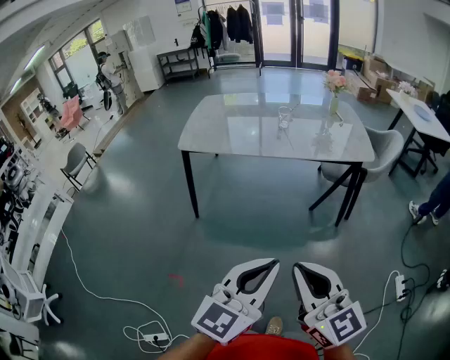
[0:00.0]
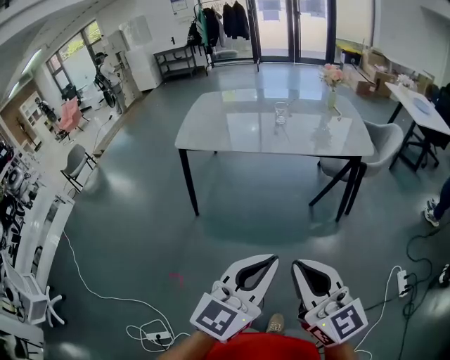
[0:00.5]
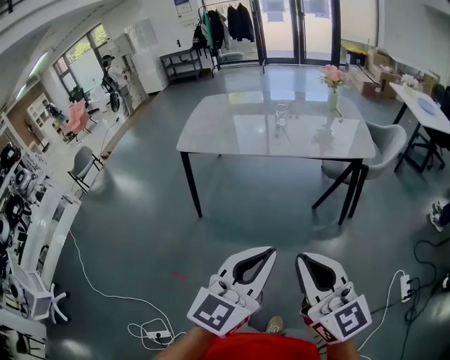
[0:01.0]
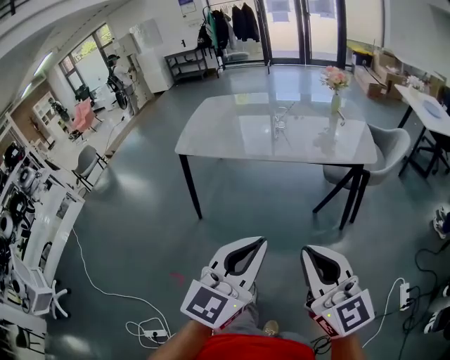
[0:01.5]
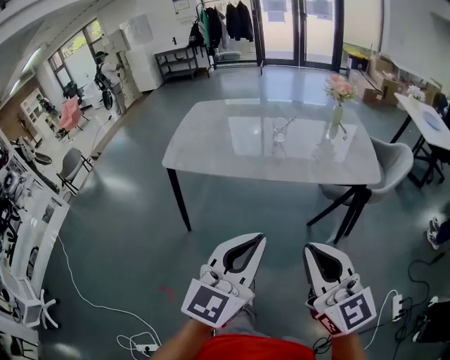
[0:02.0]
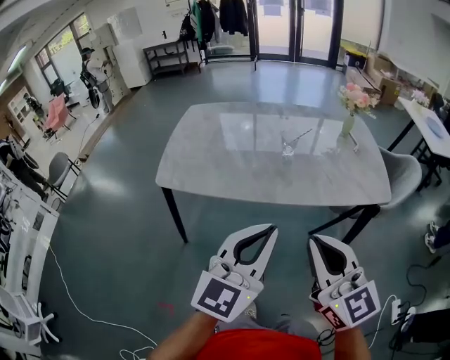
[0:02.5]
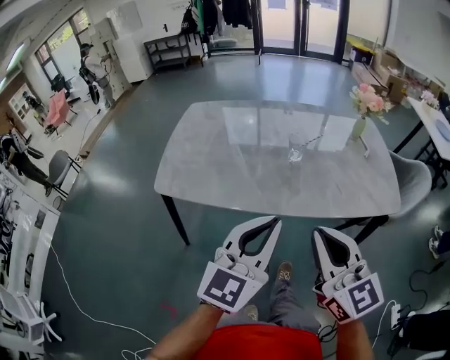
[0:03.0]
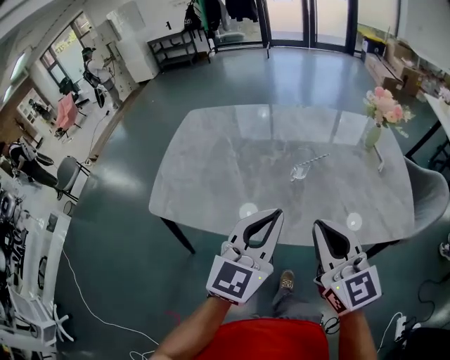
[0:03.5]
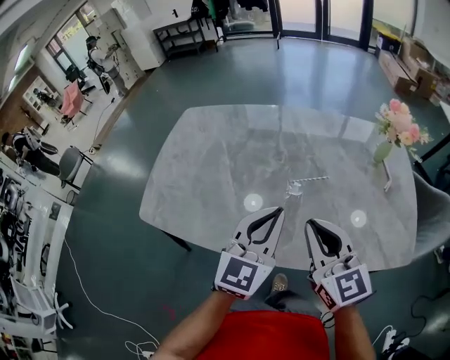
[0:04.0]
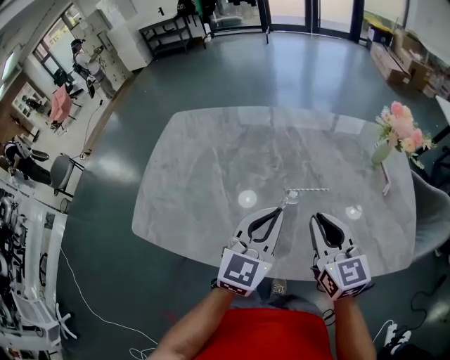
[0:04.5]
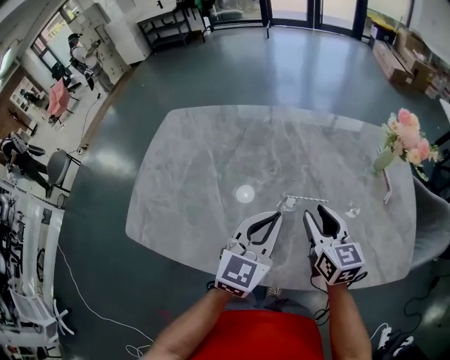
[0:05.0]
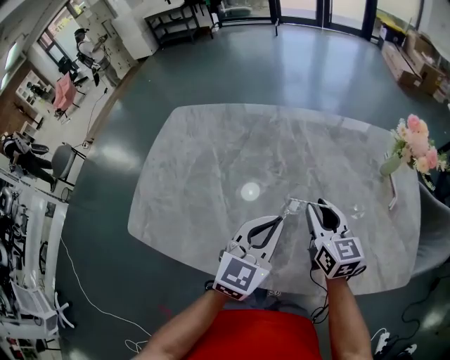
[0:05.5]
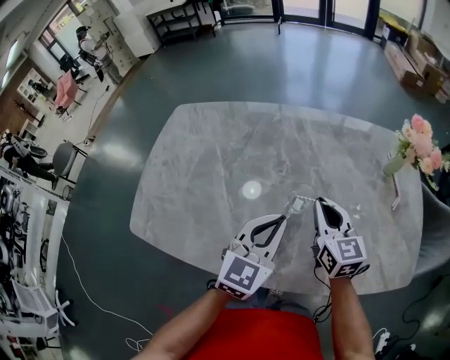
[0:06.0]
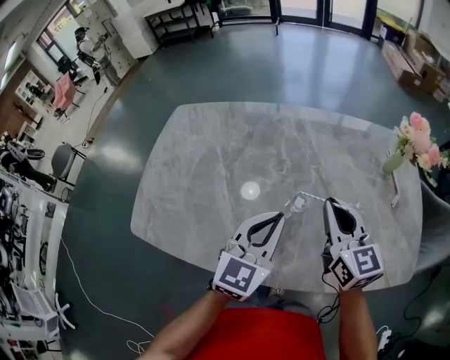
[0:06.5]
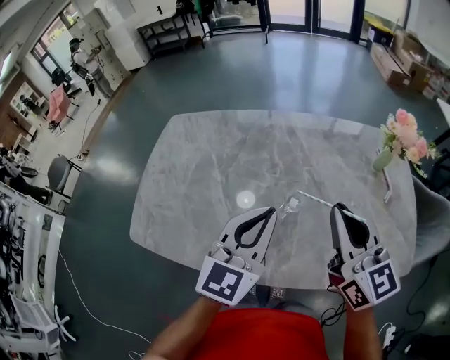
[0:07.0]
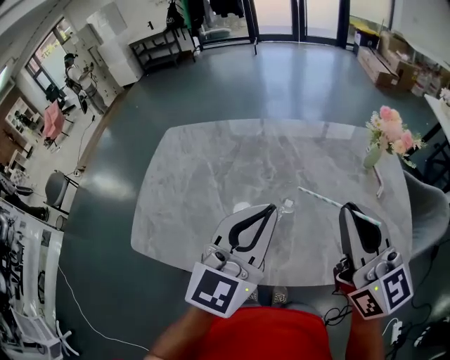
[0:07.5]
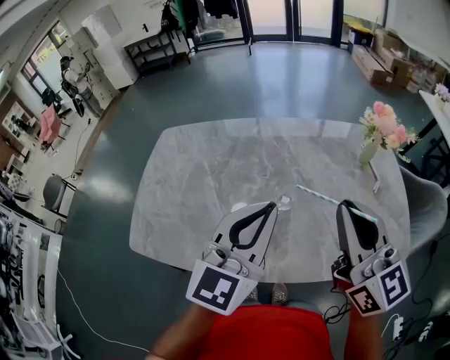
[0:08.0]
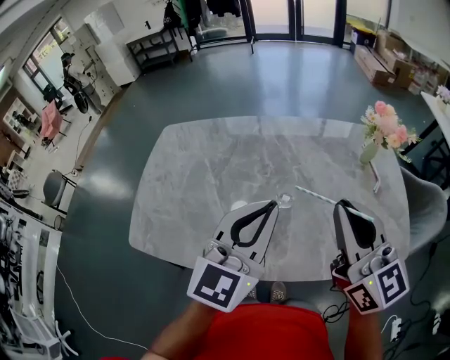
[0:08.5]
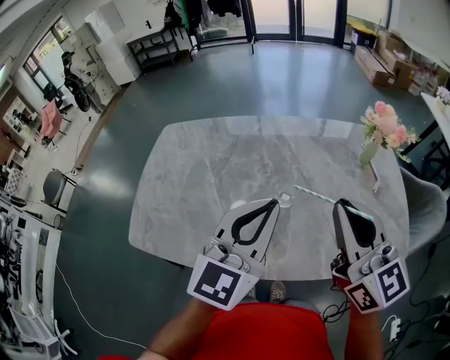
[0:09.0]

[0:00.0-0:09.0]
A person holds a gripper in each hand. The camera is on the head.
0:00.0 to 0:02.0: The two grippers go some 20 cm forward.
0:02.0 to 0:04.5: Both grippers are carried forward, roughly 60 cm.
0:04.5 to 0:07.0: The left gripper heads upward, covering some 5 cm. The right gripper moves upward, approximately 10 cm, and opens and closes again.
0:07.0 to 0:09.0: The left gripper moves upward, approximately 5 cm. Meanwhile the right gripper heads upward and backward, covering roughly 10 cm.

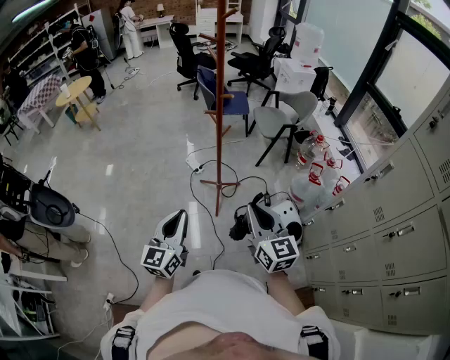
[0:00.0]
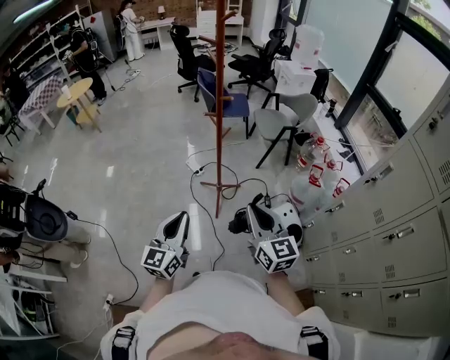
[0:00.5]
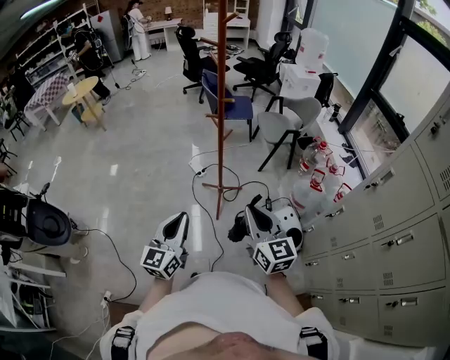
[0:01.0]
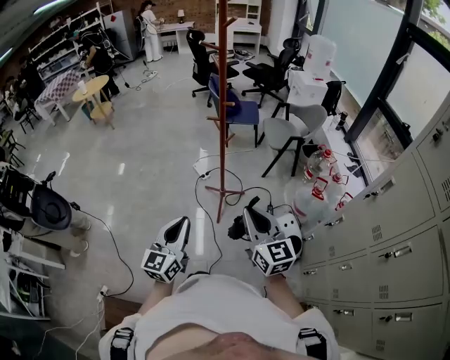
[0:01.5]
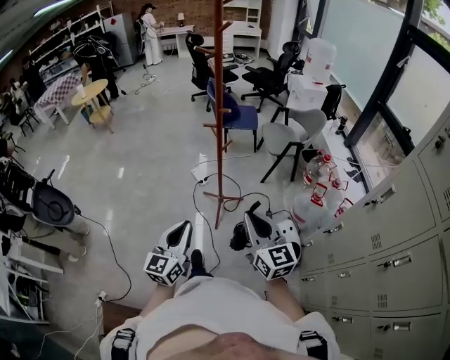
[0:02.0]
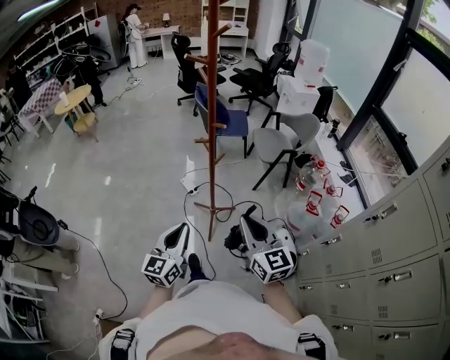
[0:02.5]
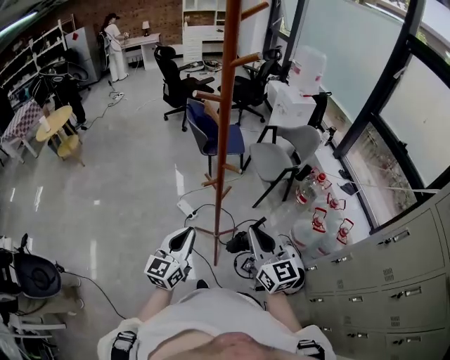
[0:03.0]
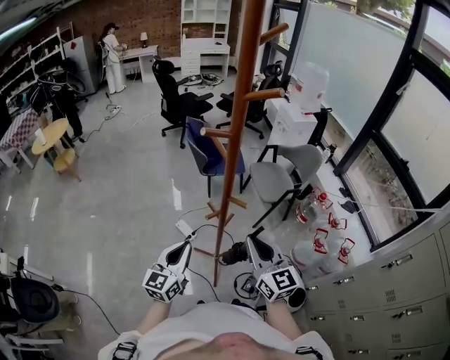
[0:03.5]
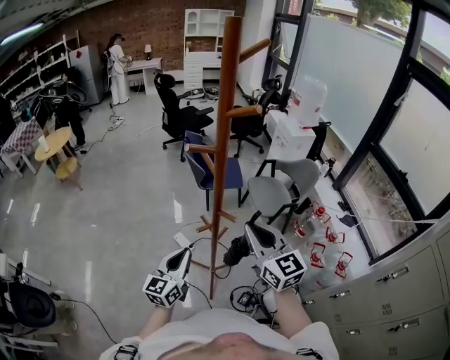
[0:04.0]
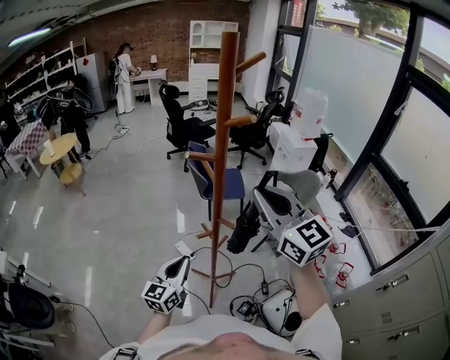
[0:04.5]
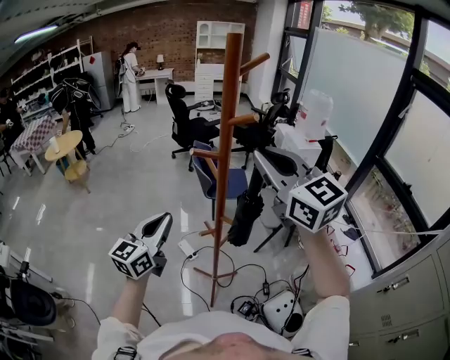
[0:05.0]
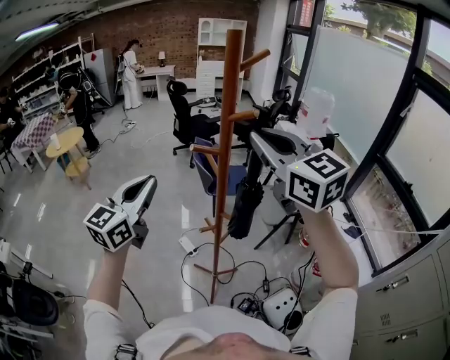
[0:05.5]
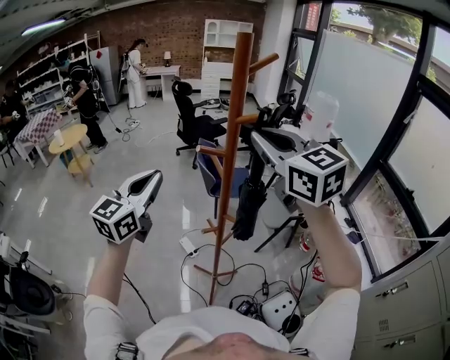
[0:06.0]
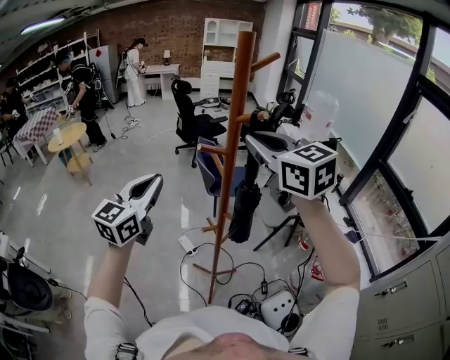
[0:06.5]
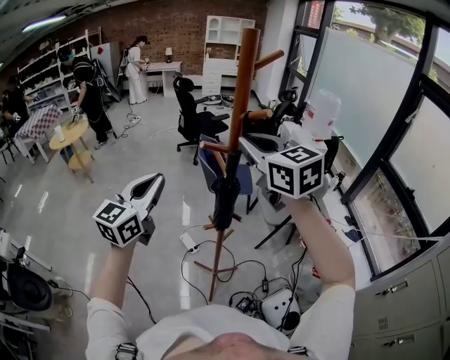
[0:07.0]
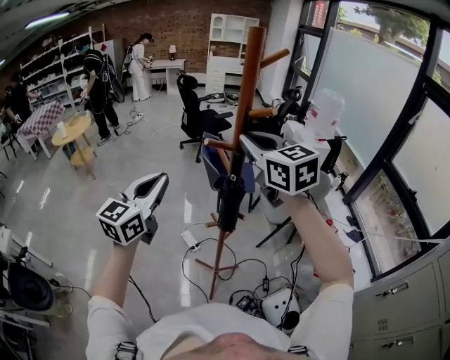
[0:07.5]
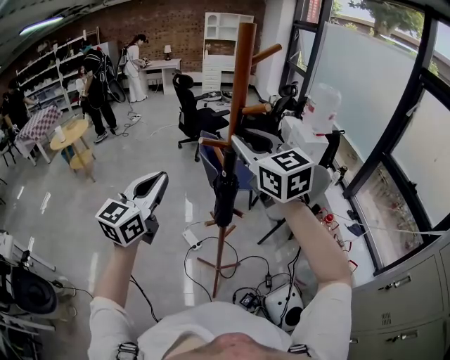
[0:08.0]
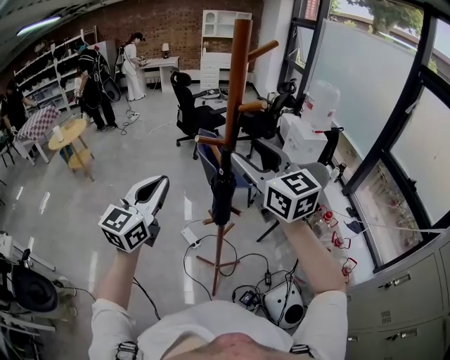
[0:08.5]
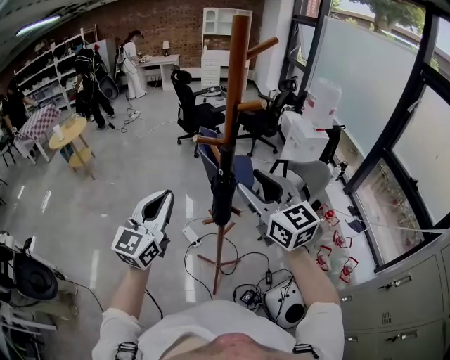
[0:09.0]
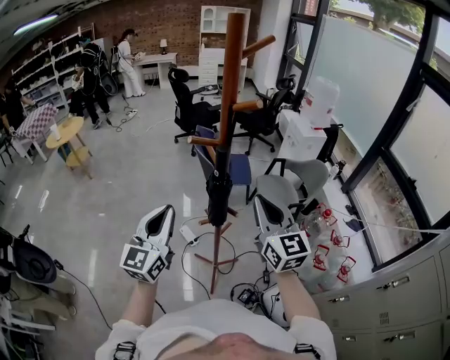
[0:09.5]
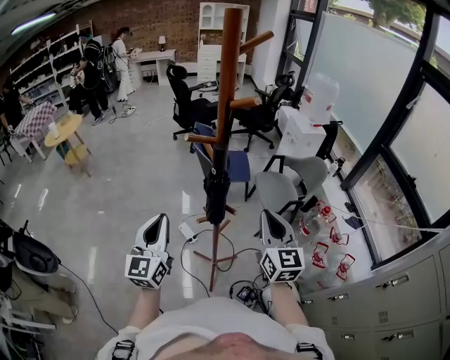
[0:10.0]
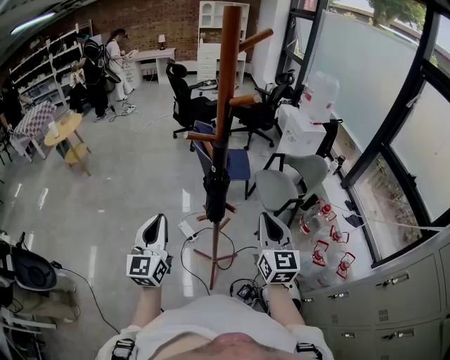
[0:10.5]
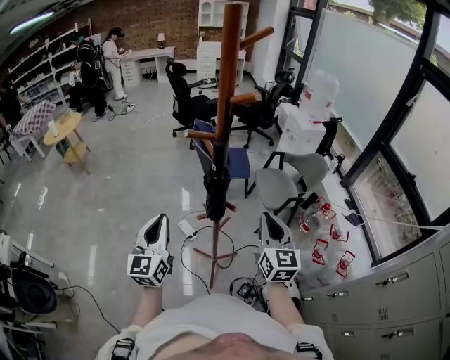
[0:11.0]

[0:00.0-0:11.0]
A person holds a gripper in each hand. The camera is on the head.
0:00.0 to 0:02.0: The grippers both shift to the right by approximately 5 cm.
0:02.0 to 0:03.5: The two grippers go some 35 cm forward.
0:03.5 to 0:05.5: The grippers both shift upward by some 30 cm. The right gripper turns by about 20 degrees.
0:05.5 to 0:07.5: The right gripper travels forward and downward by approximately 10 cm.
0:07.5 to 0:09.0: The left gripper ends up about 5 cm from where it was; the right gripper is displaced downward and backward by about 10 cm, and opens its fingers.
0:09.0 to 0:11.0: The left gripper heads downward, covering some 10 cm; the right gripper is displaced downward and to the right by about 15 cm, turns by roughly 30 degrees, and closes.

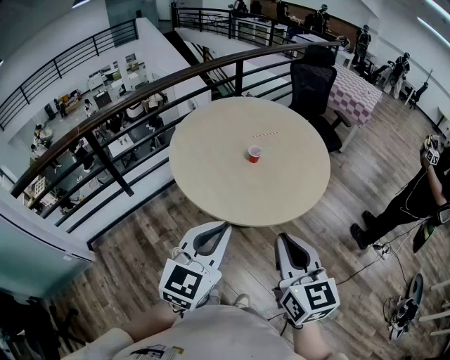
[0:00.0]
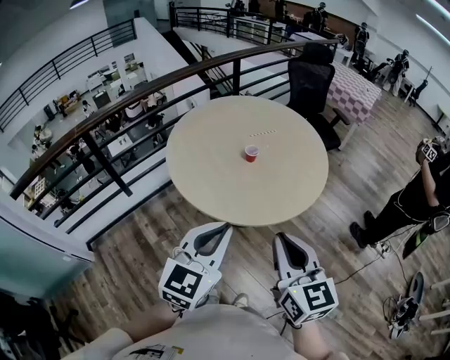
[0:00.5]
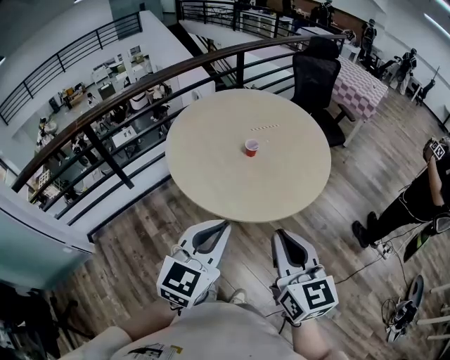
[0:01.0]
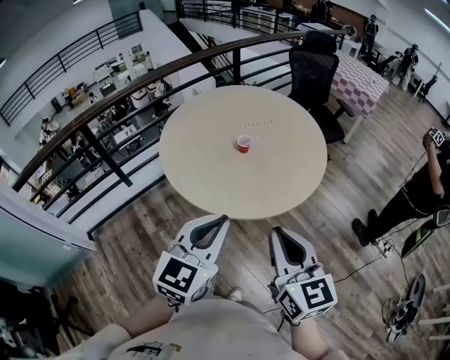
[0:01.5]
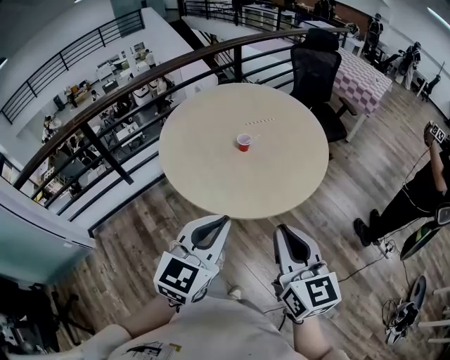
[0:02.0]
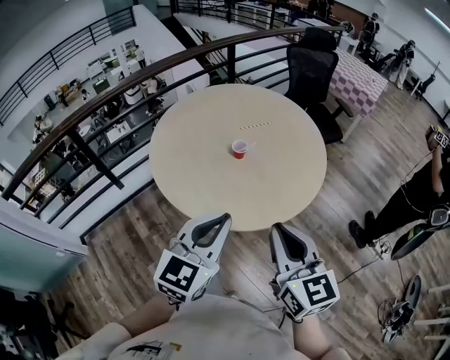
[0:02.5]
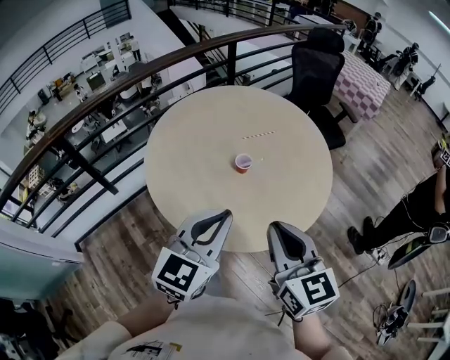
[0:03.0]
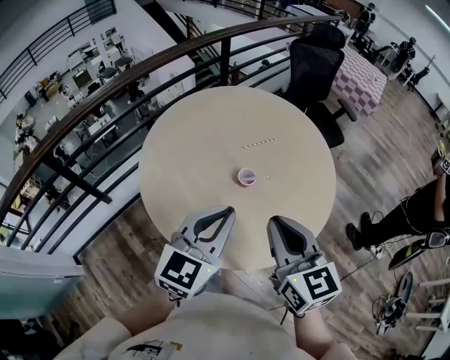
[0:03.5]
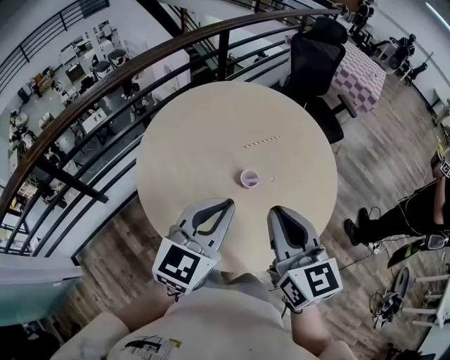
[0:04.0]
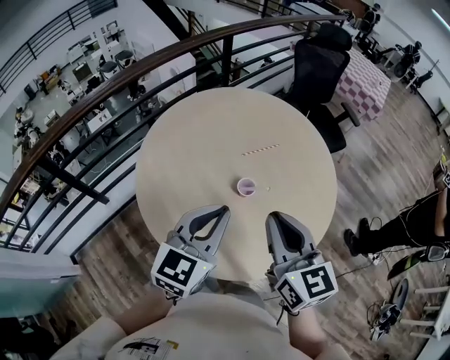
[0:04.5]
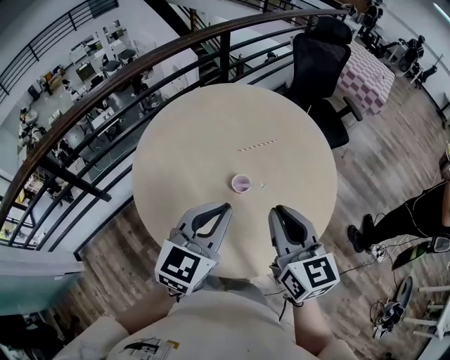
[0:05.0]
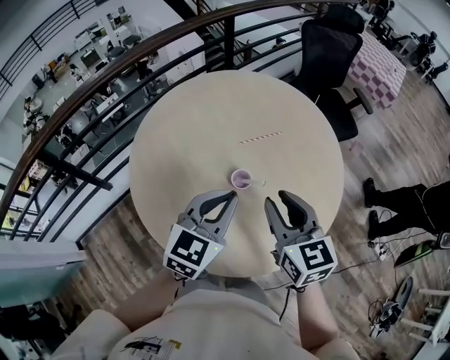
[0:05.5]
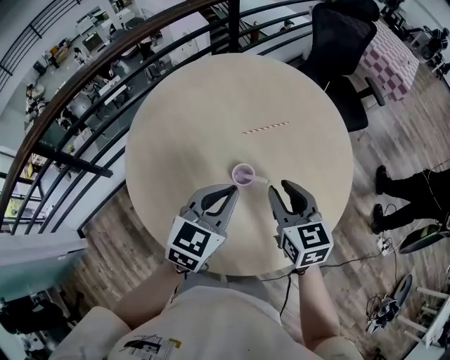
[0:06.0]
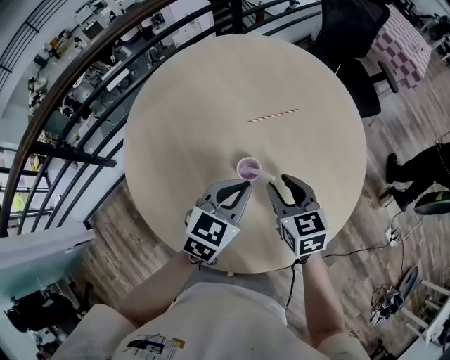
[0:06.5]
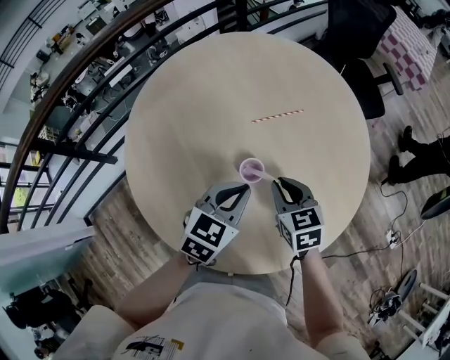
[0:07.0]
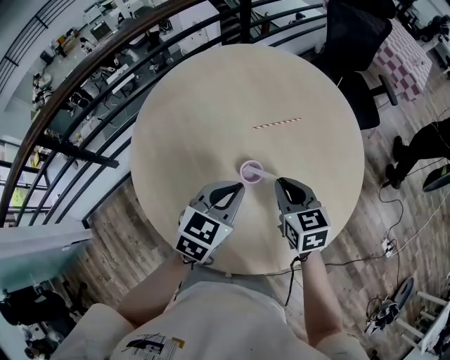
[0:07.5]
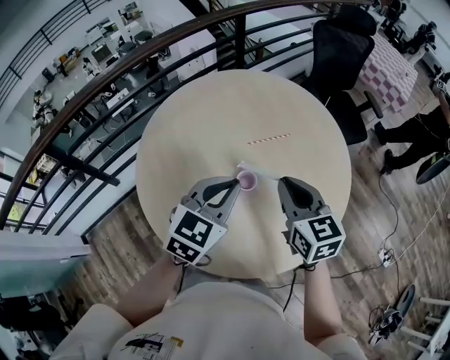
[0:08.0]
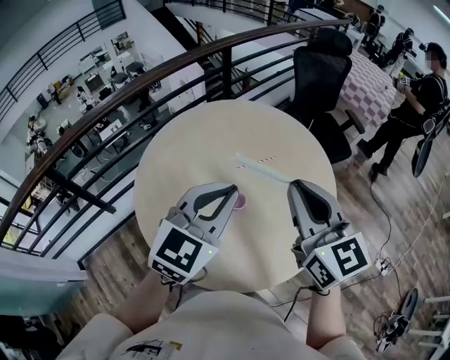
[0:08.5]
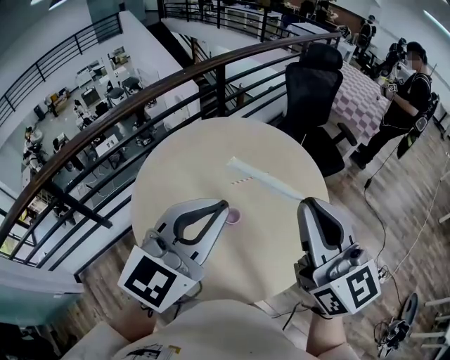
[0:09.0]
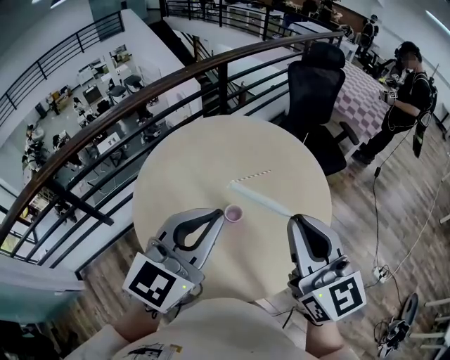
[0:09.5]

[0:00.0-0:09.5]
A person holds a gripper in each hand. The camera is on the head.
0:00.0 to 0:02.0: Both grippers move to the right, about 10 cm.
0:02.0 to 0:04.0: The right gripper travels forward and to the left by about 35 cm; the left gripper moves forward, about 35 cm.
0:04.0 to 0:05.5: The left gripper shifts roughly 15 cm forward, to the right and downward; the right gripper is displaced forward, downward and to the right by about 15 cm.
0:05.5 to 0:07.5: The grippers both shift downward and forward by some 15 cm.
0:07.5 to 0:09.5: Both grippers move upward, some 30 cm. The right gripper tilts its fingers roughly 40 degrees upward; the left gripper turns by roughly 30 degrees.
